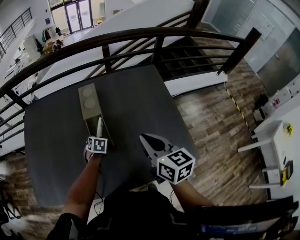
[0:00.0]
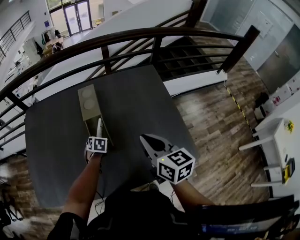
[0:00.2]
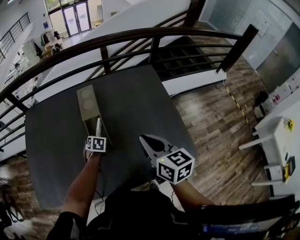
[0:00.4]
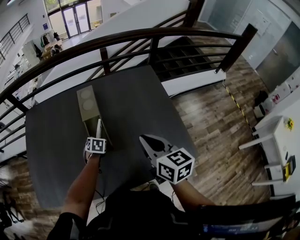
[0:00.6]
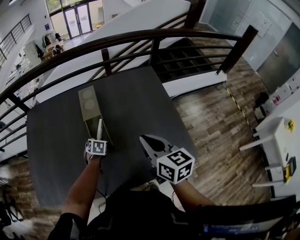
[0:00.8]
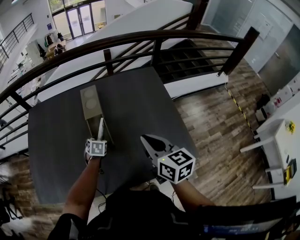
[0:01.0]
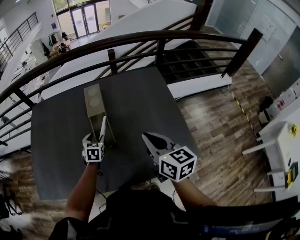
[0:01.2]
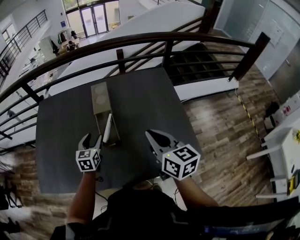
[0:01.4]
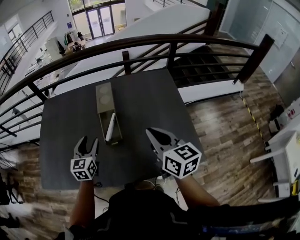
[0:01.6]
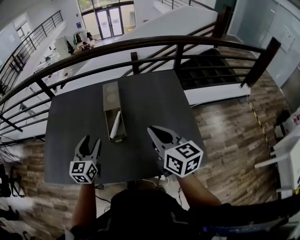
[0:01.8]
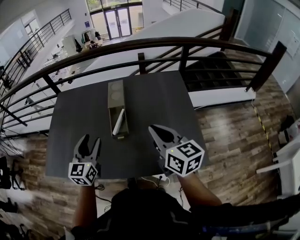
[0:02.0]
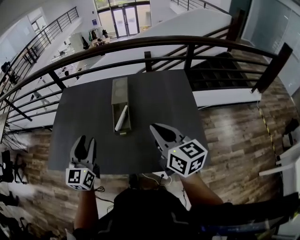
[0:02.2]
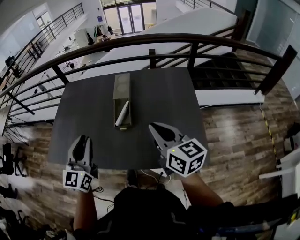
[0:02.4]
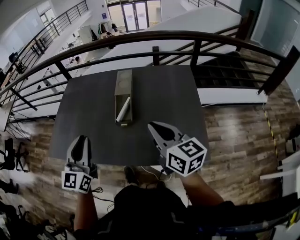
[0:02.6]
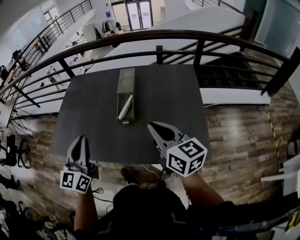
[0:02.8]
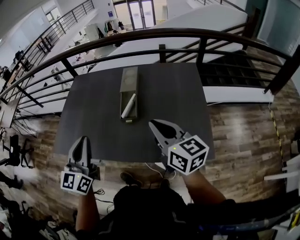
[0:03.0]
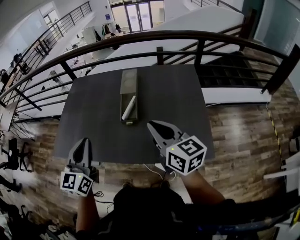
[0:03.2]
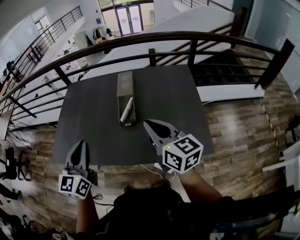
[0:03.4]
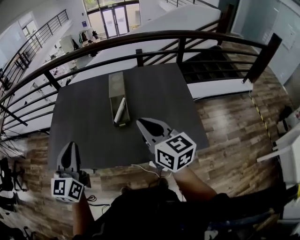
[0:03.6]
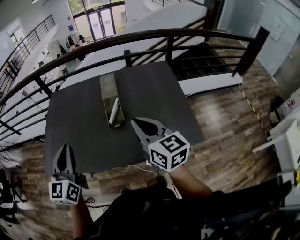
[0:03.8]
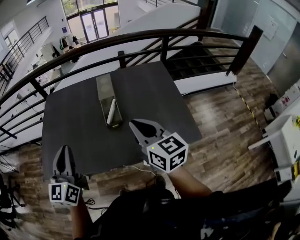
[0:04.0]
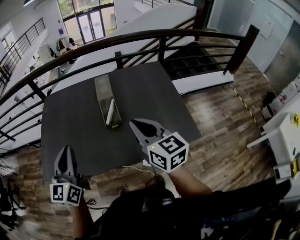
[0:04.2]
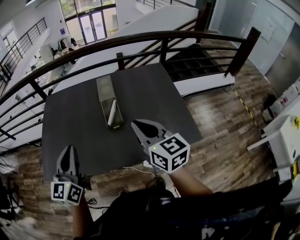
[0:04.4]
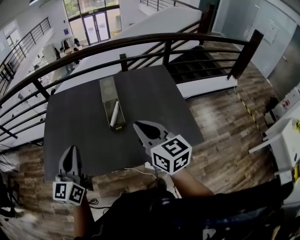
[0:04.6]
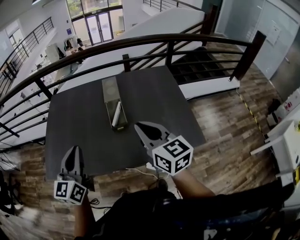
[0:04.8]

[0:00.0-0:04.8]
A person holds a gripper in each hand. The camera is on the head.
0:00.0 to 0:01.6: The right gripper is displaced backward by about 5 cm, while the left gripper goes some 25 cm upward and backward, points its fingers approximately 40 degrees further upward, and opens up.
0:01.6 to 0:03.2: The right gripper travels backward by about 10 cm; the left gripper heads backward and upward, covering roughly 30 cm, and closes.
0:03.2 to 0:04.8: Both grippers travel together to the left, about 10 cm.

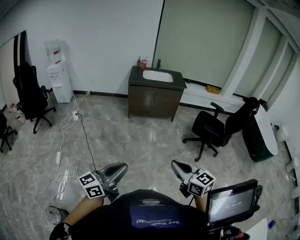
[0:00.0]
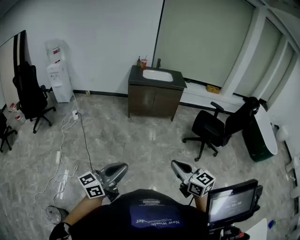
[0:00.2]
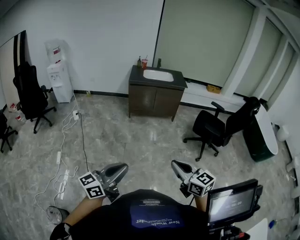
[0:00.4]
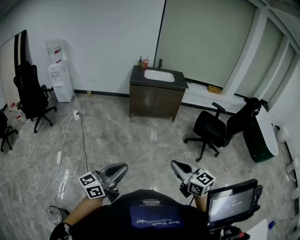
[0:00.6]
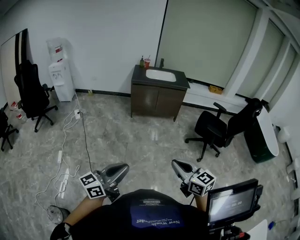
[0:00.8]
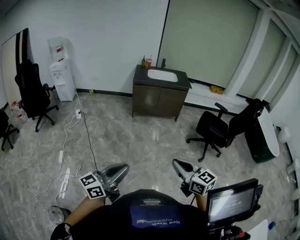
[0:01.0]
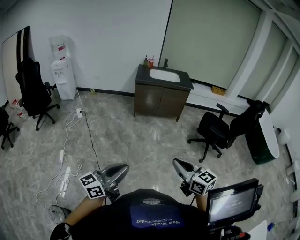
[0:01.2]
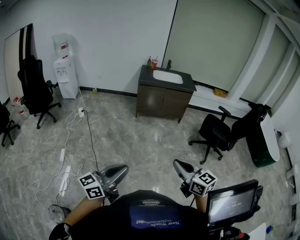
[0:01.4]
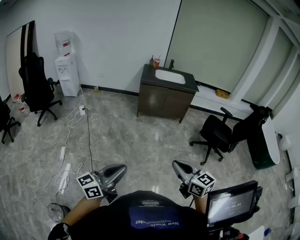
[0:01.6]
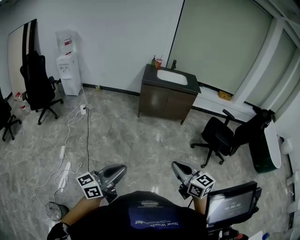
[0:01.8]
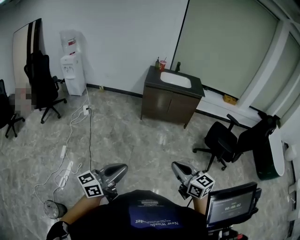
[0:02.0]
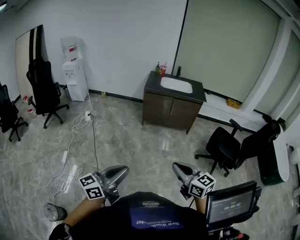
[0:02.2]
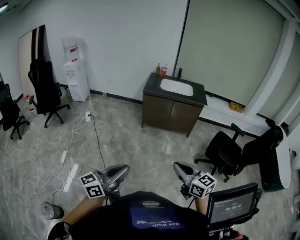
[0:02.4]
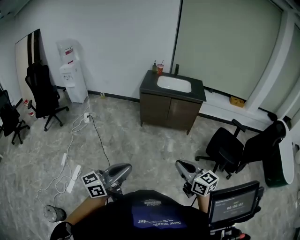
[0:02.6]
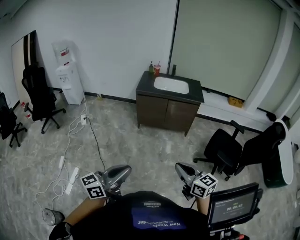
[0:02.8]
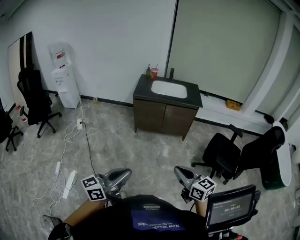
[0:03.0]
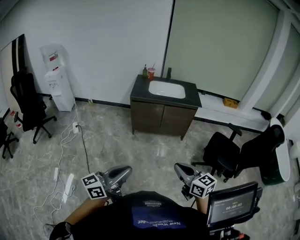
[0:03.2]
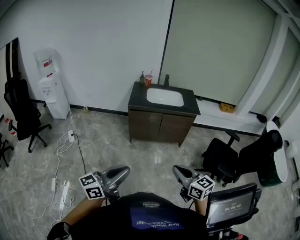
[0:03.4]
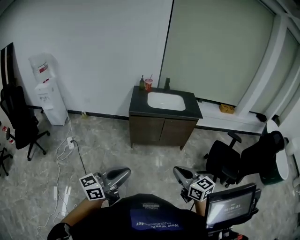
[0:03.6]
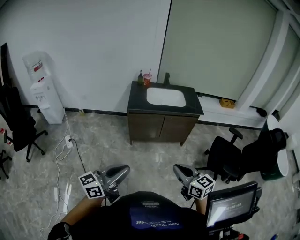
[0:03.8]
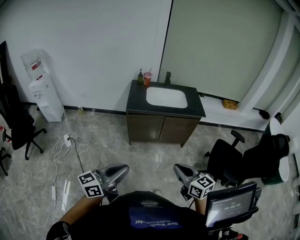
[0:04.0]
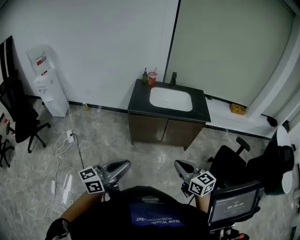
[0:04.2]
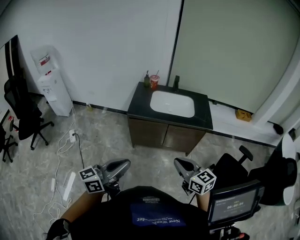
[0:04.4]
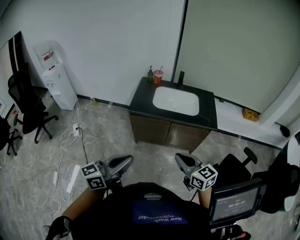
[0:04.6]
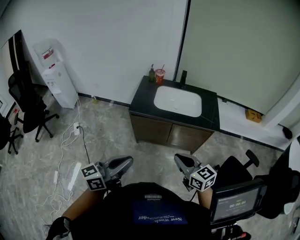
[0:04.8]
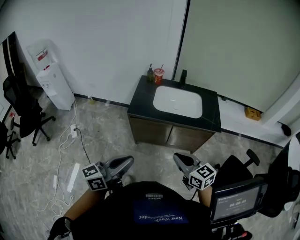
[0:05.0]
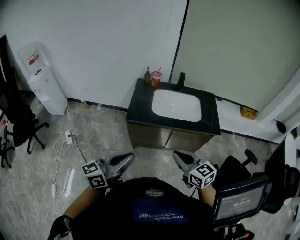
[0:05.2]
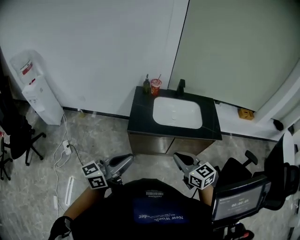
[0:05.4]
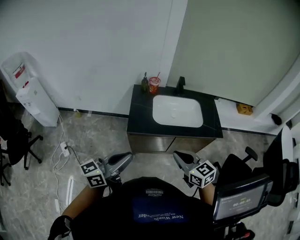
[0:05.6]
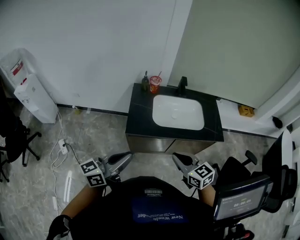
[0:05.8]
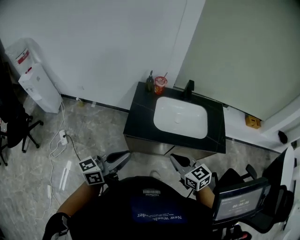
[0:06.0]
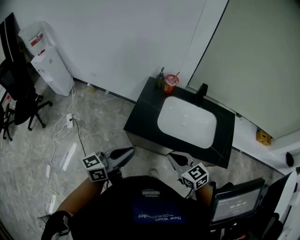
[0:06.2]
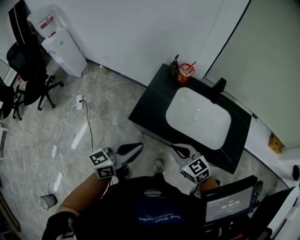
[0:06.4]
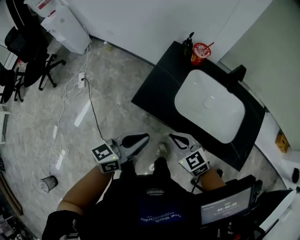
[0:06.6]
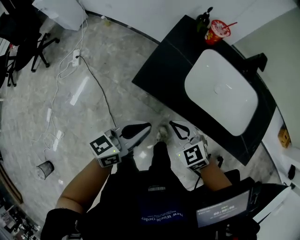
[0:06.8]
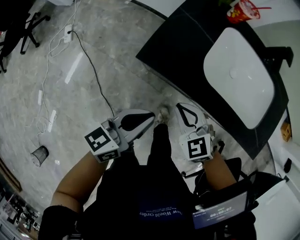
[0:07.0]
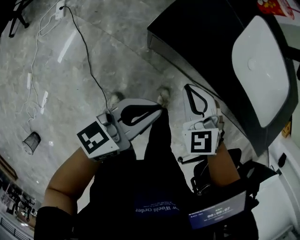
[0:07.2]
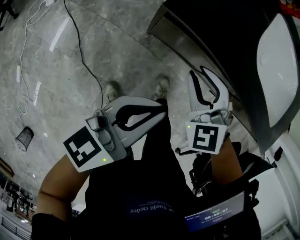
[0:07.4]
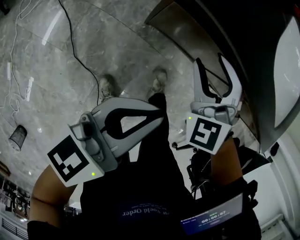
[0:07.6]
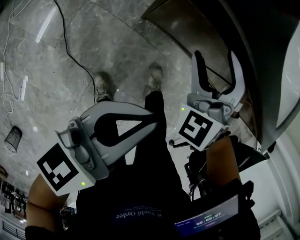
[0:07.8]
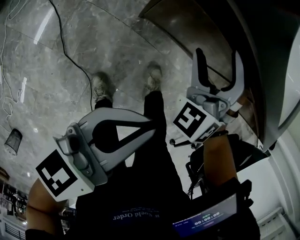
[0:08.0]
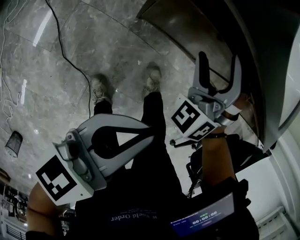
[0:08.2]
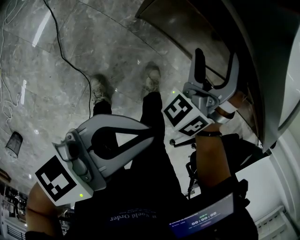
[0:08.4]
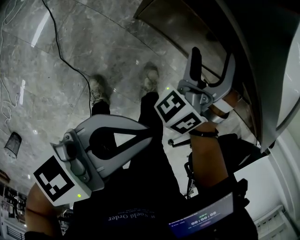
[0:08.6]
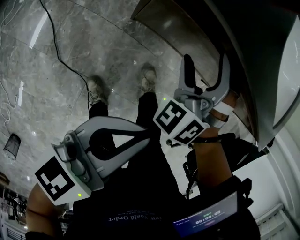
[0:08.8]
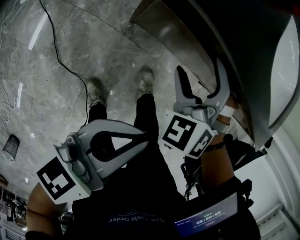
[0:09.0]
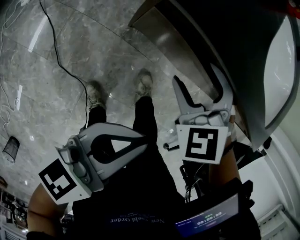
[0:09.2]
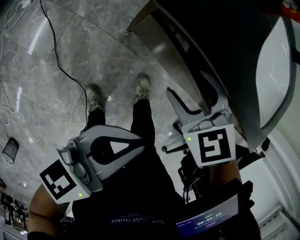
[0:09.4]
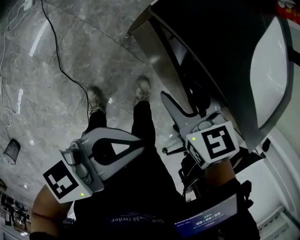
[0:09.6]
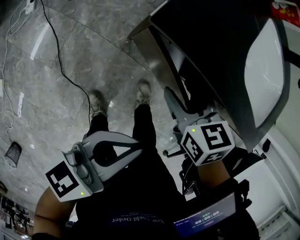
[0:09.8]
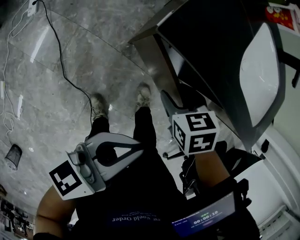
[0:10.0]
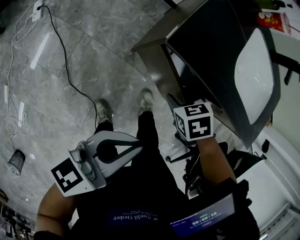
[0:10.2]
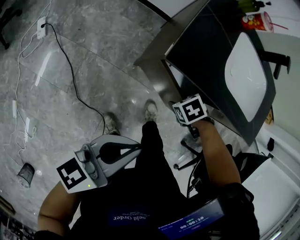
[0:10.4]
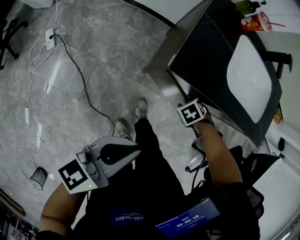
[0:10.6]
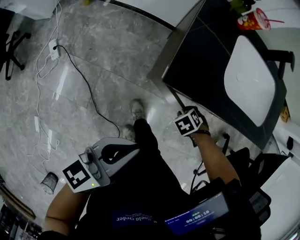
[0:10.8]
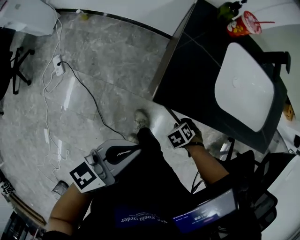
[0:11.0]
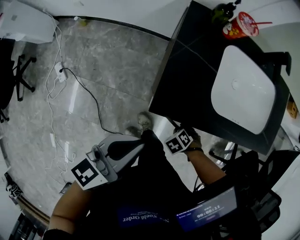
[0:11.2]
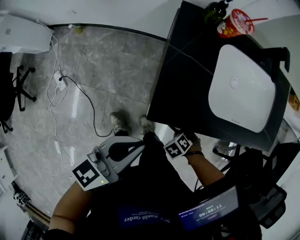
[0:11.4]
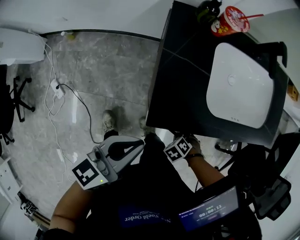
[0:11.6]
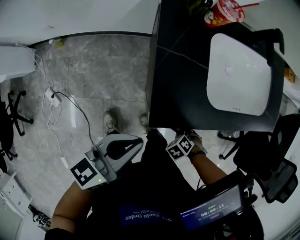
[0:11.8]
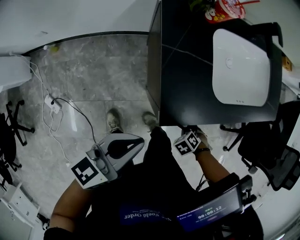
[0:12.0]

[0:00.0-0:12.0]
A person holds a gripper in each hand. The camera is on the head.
0:00.0 to 0:01.6: Both grippers travel together to the left, roughly 10 cm.
0:01.6 to 0:03.0: Both grippers travel together forward and to the right, about 35 cm.
0:03.0 to 0:04.4: Both grippers are carried forward, approximately 40 cm.
0:04.4 to 0:06.0: The two grippers go some 30 cm forward.
0:06.0 to 0:07.6: The two grippers go roughly 30 cm downward. The right gripper twists about 50 degrees counterclockwise, seen from behind, and opens up.
0:07.6 to 0:09.0: The right gripper swivels roughly 20 degrees, and opens up.
0:09.0 to 0:10.4: The left gripper moves upward, some 10 cm, while the right gripper changes place by some 5 cm, points its fingers roughly 40 degrees further downward, and closes.
0:10.4 to 0:12.0: The left gripper ends up approximately 25 cm from where it was, and changes its angle by some 30 degrees.

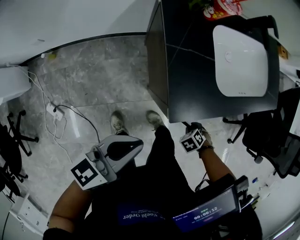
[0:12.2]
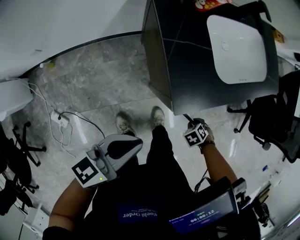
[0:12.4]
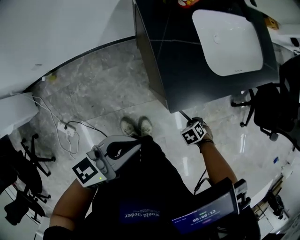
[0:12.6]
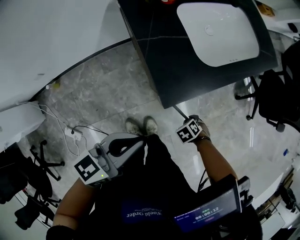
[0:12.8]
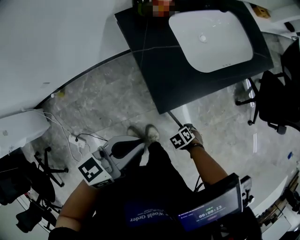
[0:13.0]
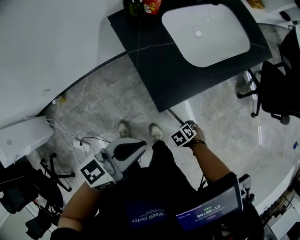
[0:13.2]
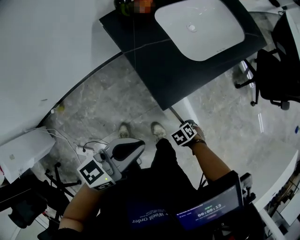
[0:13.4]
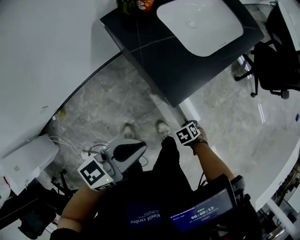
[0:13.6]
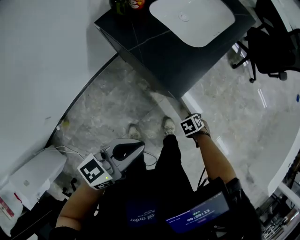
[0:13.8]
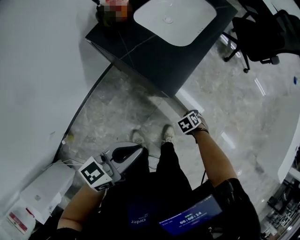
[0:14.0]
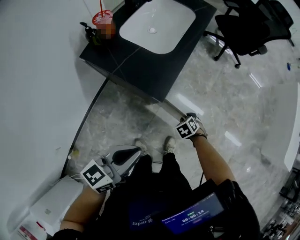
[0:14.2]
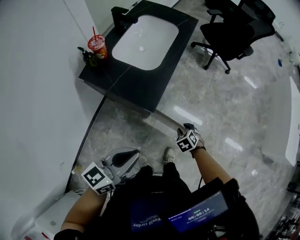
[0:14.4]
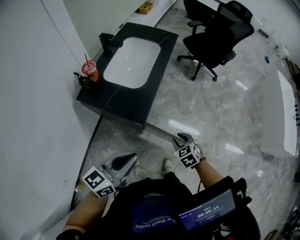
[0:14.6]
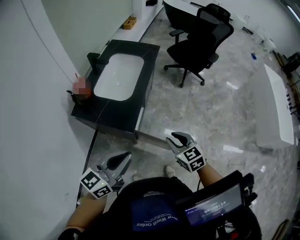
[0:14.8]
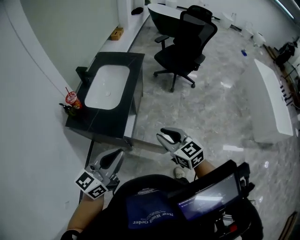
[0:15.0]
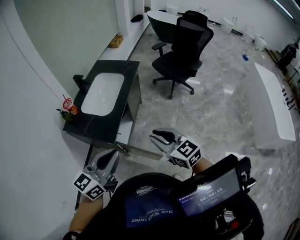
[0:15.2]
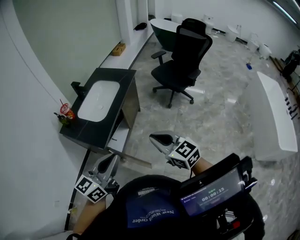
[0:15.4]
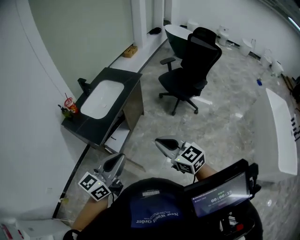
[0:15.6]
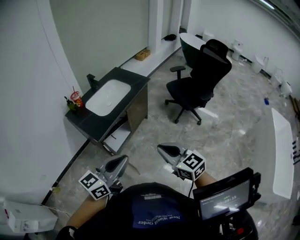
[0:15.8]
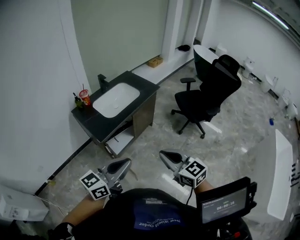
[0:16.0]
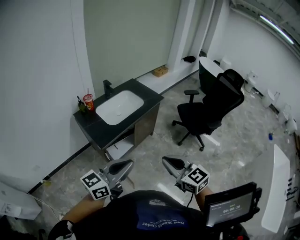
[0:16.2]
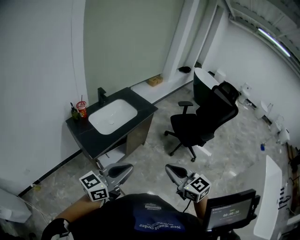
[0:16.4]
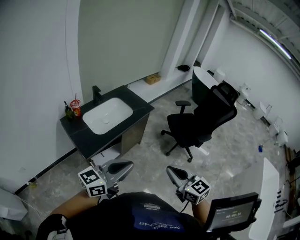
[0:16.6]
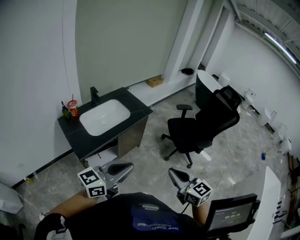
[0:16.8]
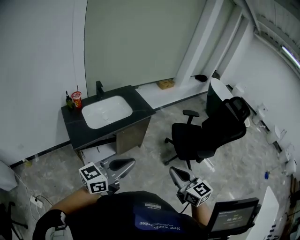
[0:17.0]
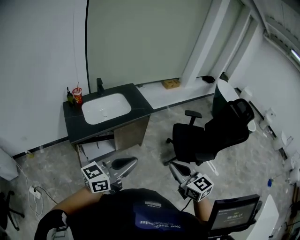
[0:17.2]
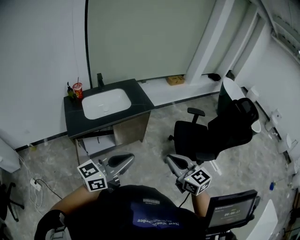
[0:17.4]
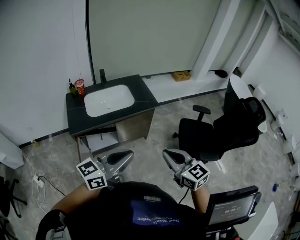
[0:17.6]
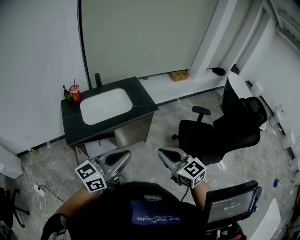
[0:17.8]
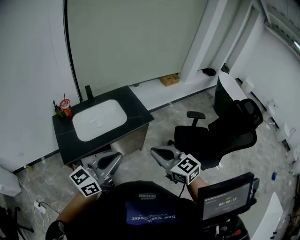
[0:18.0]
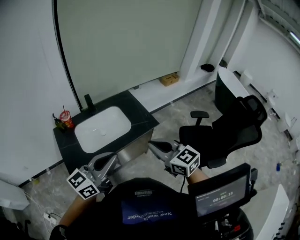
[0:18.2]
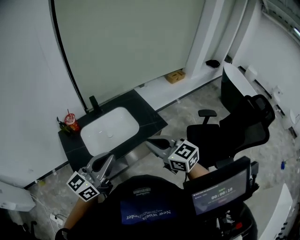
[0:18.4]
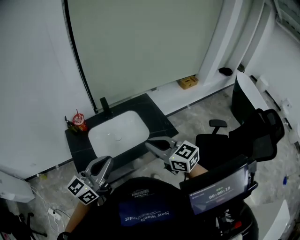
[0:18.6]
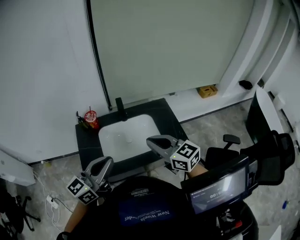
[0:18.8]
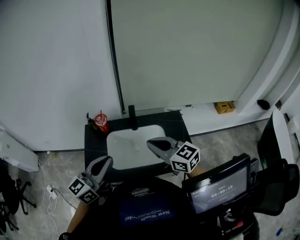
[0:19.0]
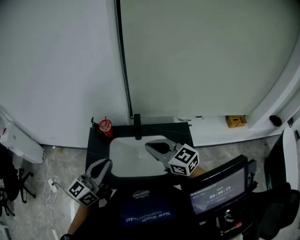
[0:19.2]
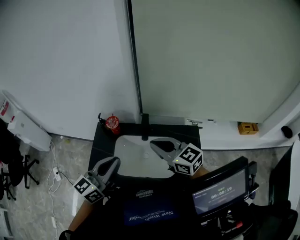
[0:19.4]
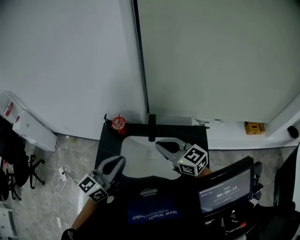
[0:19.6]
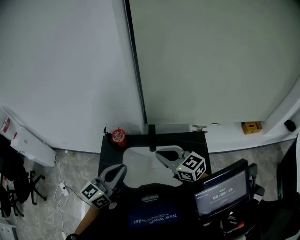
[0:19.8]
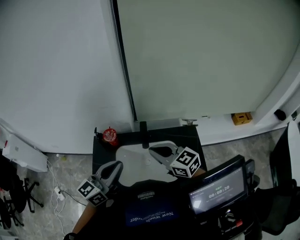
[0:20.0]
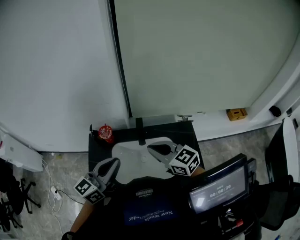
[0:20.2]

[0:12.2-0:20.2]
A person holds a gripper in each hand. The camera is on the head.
0:12.2 to 0:13.8: The right gripper ends up some 15 cm from where it was, and twists some 50 degrees clockwise, seen from behind, while the left gripper changes place by roughly 5 cm, and swivels approximately 40 degrees.
0:13.8 to 0:15.4: The right gripper goes roughly 50 cm upward, and points its fingers roughly 70 degrees further upward. Meanwhile the left gripper changes place by roughly 35 cm, and turns by roughly 20 degrees.
0:15.4 to 0:17.0: Both grippers move to the right and forward, some 35 cm.
0:17.0 to 0:18.6: The left gripper ends up roughly 35 cm from where it was, and swivels some 30 degrees. The right gripper shifts by some 40 cm, and swivels approximately 30 degrees.
0:18.6 to 0:20.2: The right gripper shifts by about 25 cm, and changes its angle by about 20 degrees. Meanwhile the left gripper ends up approximately 20 cm from where it was, and turns by roughly 20 degrees.
